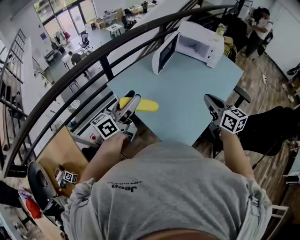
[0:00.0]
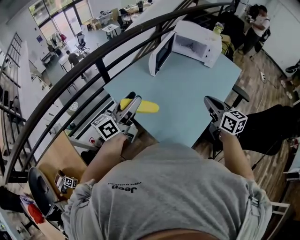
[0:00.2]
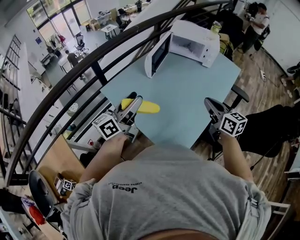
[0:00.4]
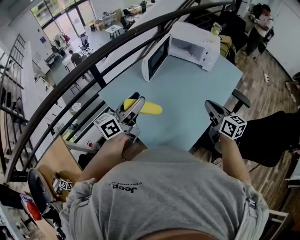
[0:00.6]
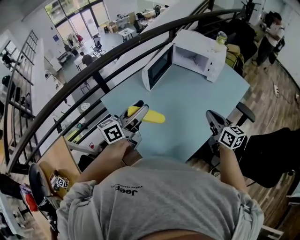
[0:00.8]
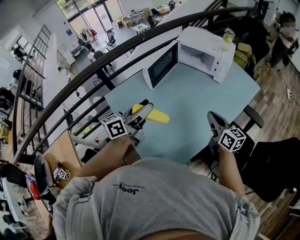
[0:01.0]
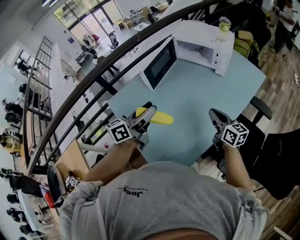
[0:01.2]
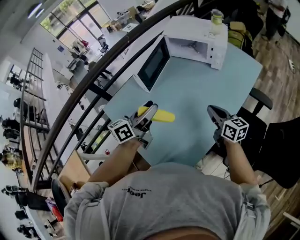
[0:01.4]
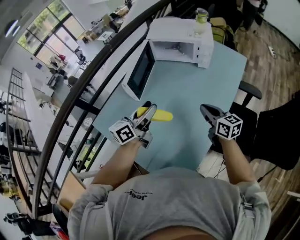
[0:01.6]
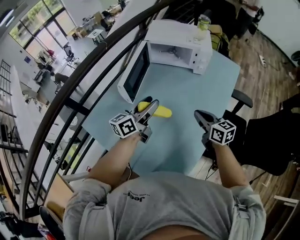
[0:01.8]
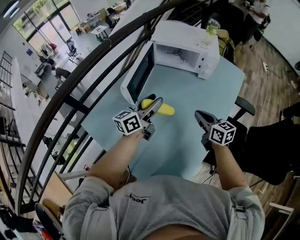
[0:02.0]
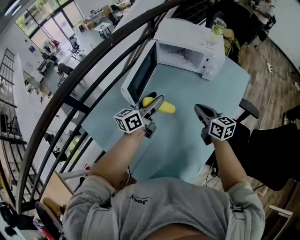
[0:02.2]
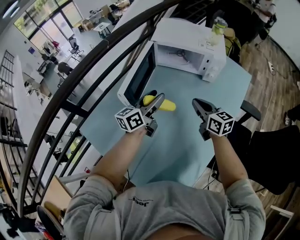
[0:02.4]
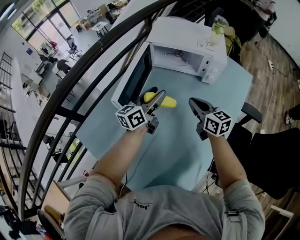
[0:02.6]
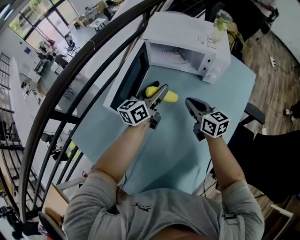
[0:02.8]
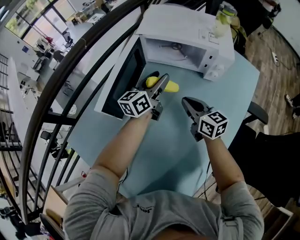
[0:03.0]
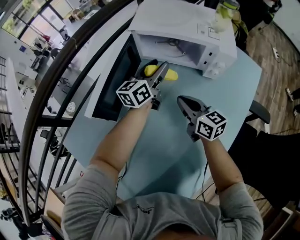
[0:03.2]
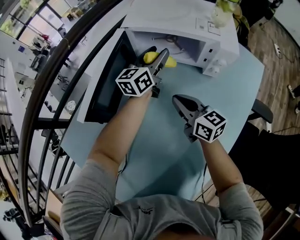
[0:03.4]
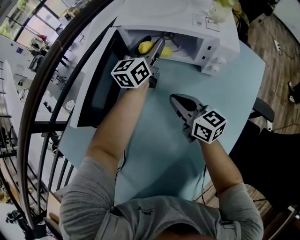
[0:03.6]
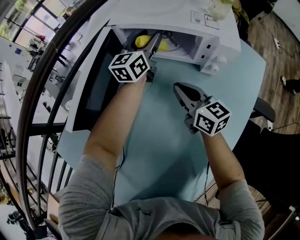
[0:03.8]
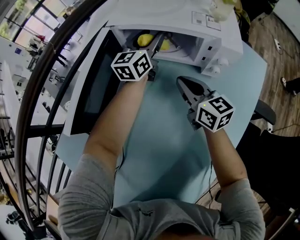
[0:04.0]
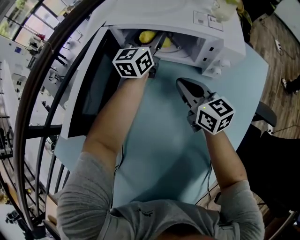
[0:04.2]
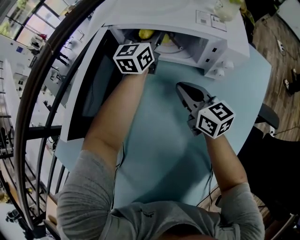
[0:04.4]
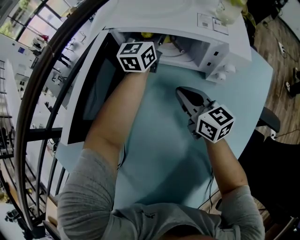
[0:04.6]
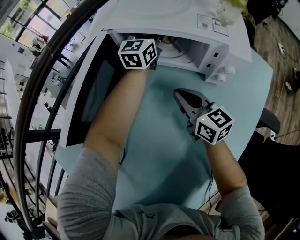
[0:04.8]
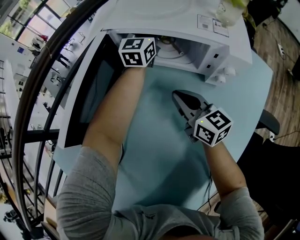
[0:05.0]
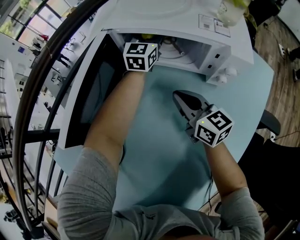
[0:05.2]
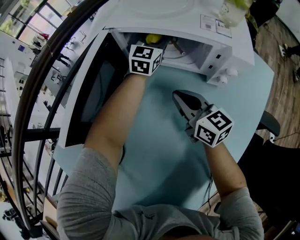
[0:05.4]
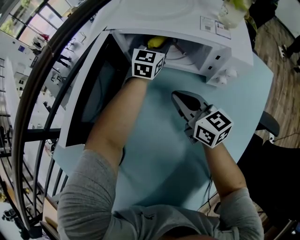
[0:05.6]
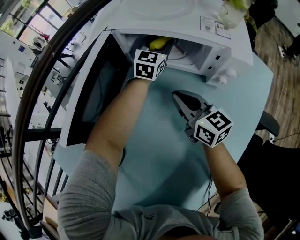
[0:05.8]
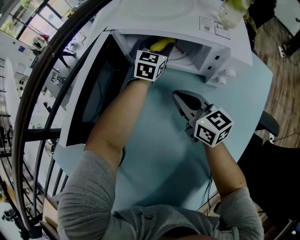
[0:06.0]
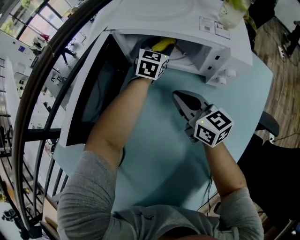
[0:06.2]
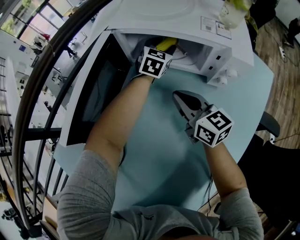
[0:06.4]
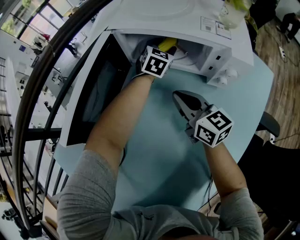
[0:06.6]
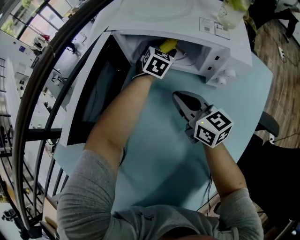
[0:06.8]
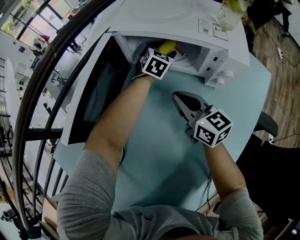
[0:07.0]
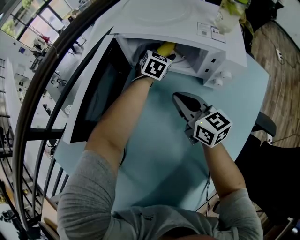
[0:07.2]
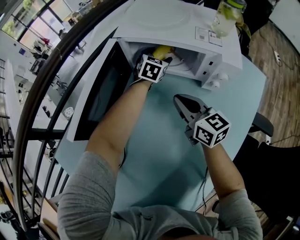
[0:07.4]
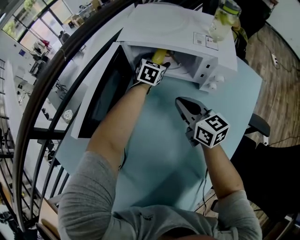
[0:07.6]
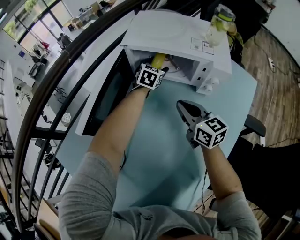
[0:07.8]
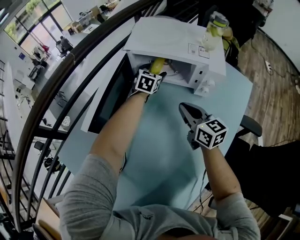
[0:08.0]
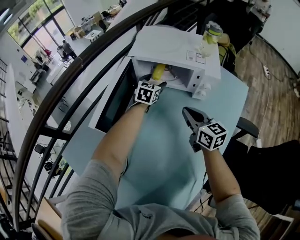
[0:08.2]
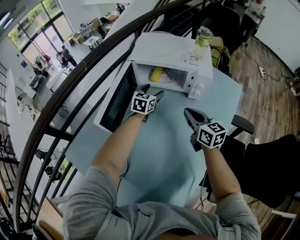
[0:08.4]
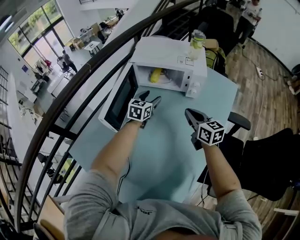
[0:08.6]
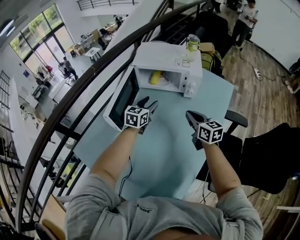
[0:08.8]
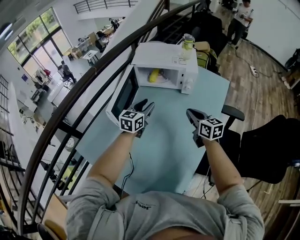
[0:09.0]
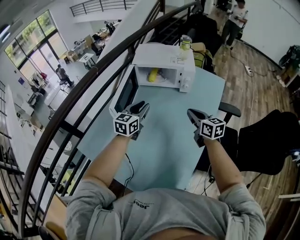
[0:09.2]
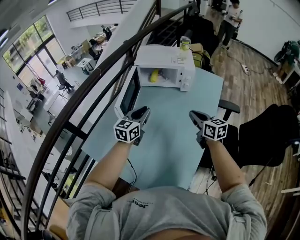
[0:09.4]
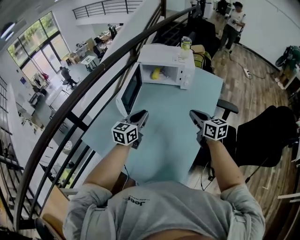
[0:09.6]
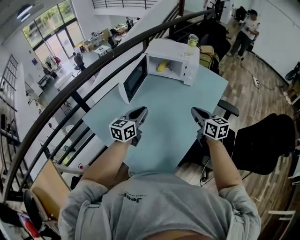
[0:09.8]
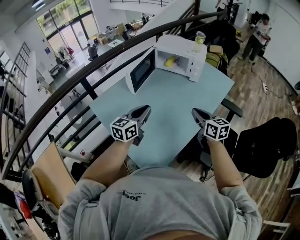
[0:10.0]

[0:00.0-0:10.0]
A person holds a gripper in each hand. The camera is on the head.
0:00.0 to 0:01.4: The left gripper travels to the right and forward by roughly 30 cm. The right gripper travels forward, to the right and downward by roughly 25 cm.
0:01.4 to 0:02.8: The right gripper travels forward by some 20 cm. Meanwhile the left gripper is displaced forward and downward by approximately 30 cm.
0:02.8 to 0:04.2: The left gripper moves forward, roughly 25 cm, and changes its angle by roughly 20 degrees. Meanwhile the right gripper shifts some 10 cm forward.
0:04.2 to 0:05.8: The left gripper goes roughly 5 cm downward, and rotates approximately 20 degrees.
0:05.8 to 0:07.2: The left gripper shifts approximately 5 cm downward, and rotates some 20 degrees.
0:07.2 to 0:08.6: The right gripper shifts some 15 cm backward, upward and to the right. The left gripper travels backward and upward by approximately 25 cm.
0:08.6 to 0:10.0: The right gripper goes approximately 25 cm backward. The left gripper is displaced backward by roughly 40 cm, changes its angle by approximately 20 degrees, and closes.

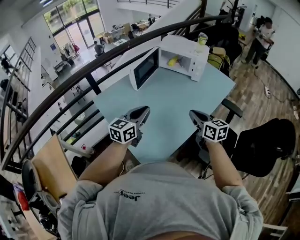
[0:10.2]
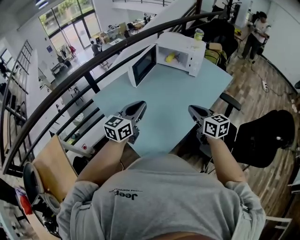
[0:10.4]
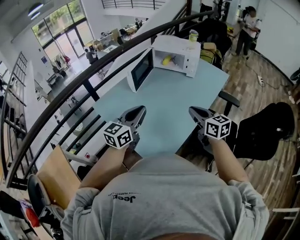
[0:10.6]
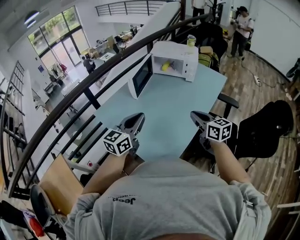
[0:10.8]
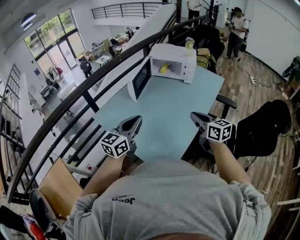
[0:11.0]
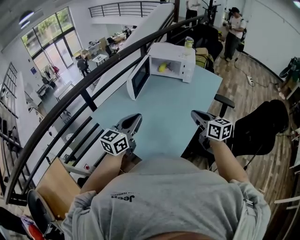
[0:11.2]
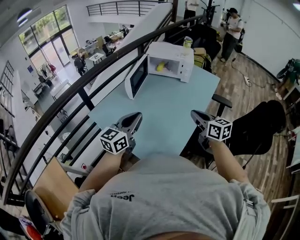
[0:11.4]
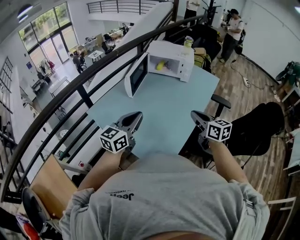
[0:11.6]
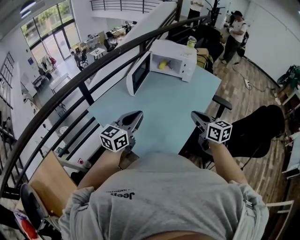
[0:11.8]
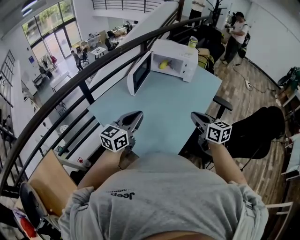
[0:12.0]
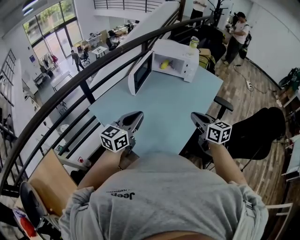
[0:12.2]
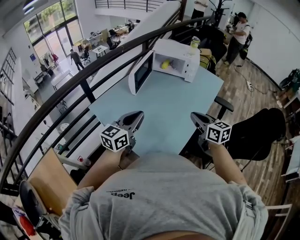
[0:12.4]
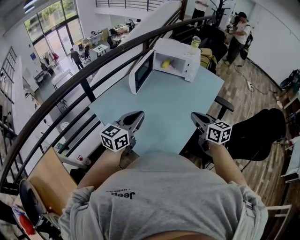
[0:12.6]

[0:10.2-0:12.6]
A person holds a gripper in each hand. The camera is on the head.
0:10.2 to 0:11.4: The right gripper heads upward, covering approximately 5 cm, while the left gripper goes approximately 10 cm to the left.
0:11.4 to 0:12.6: The grippers move only a little.

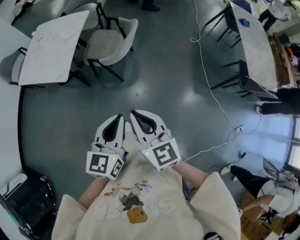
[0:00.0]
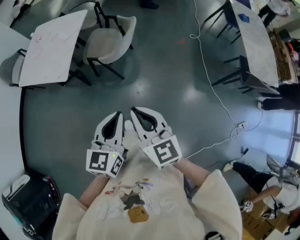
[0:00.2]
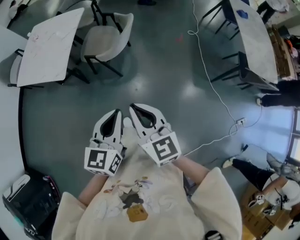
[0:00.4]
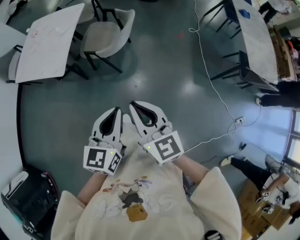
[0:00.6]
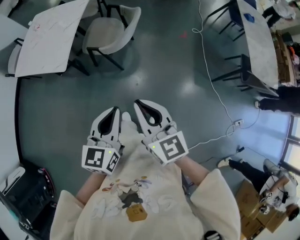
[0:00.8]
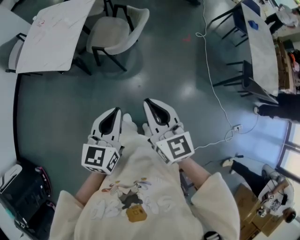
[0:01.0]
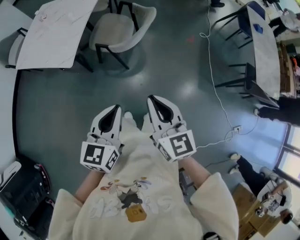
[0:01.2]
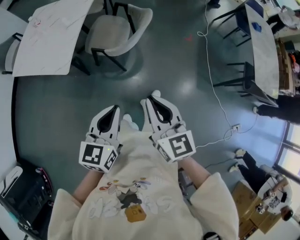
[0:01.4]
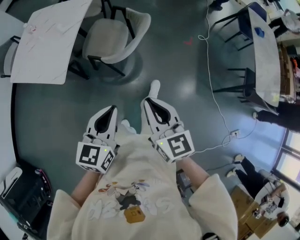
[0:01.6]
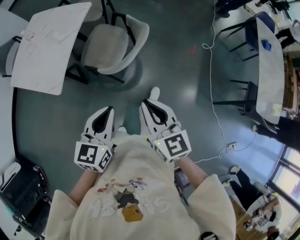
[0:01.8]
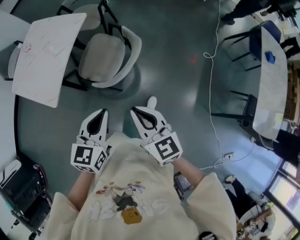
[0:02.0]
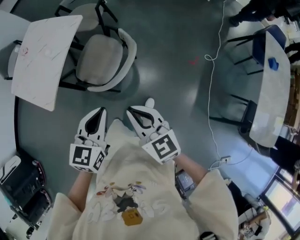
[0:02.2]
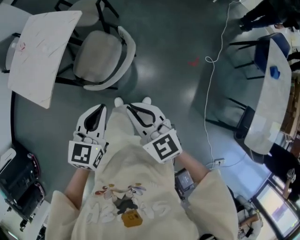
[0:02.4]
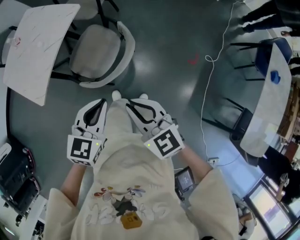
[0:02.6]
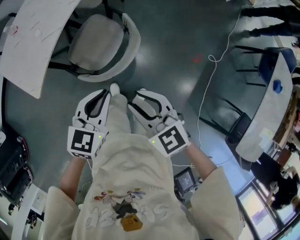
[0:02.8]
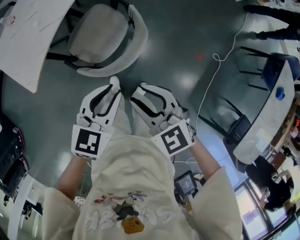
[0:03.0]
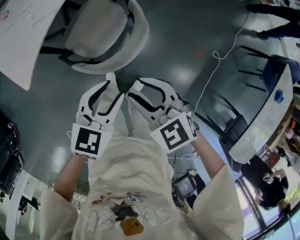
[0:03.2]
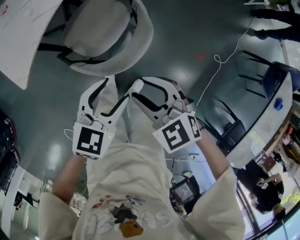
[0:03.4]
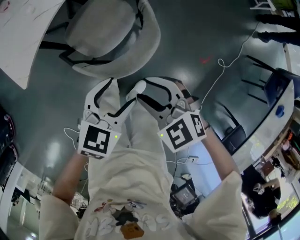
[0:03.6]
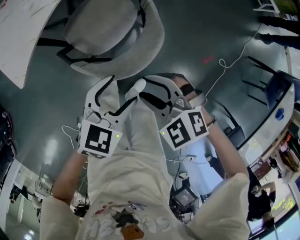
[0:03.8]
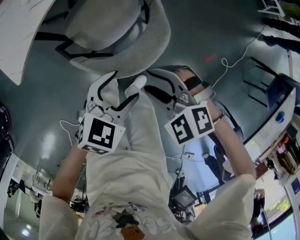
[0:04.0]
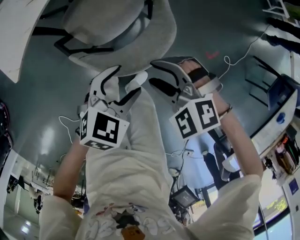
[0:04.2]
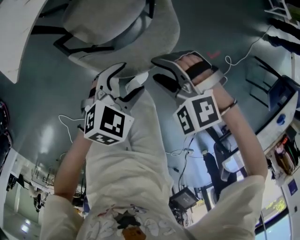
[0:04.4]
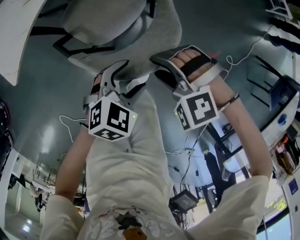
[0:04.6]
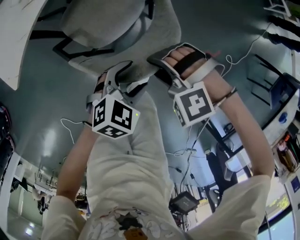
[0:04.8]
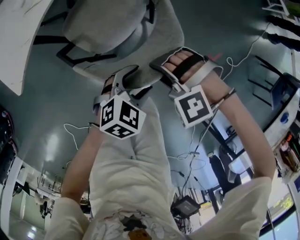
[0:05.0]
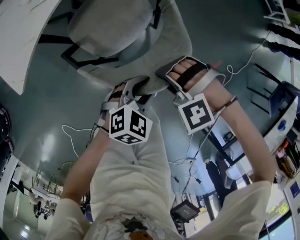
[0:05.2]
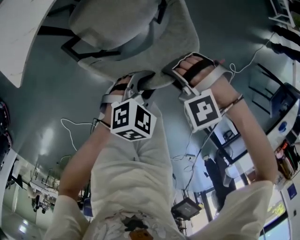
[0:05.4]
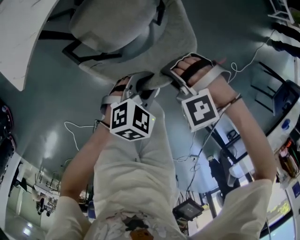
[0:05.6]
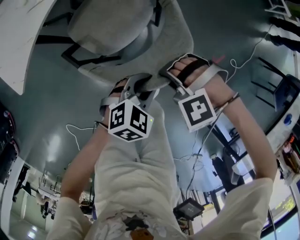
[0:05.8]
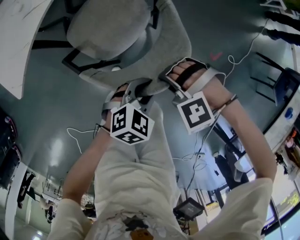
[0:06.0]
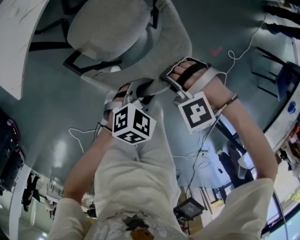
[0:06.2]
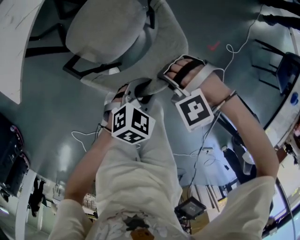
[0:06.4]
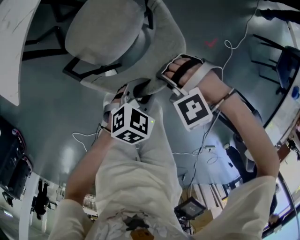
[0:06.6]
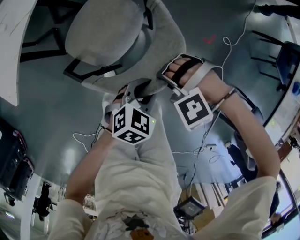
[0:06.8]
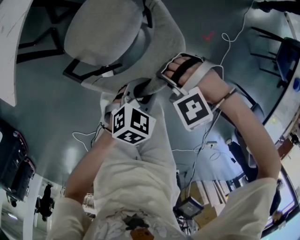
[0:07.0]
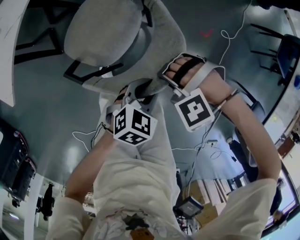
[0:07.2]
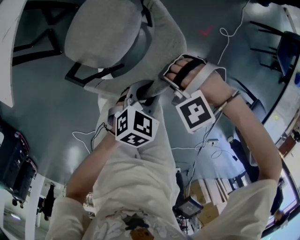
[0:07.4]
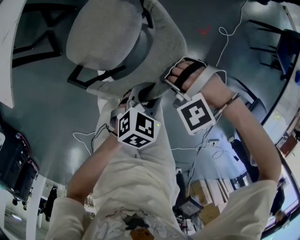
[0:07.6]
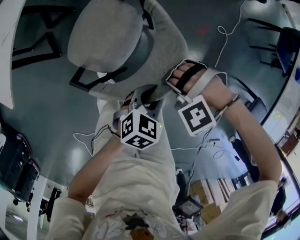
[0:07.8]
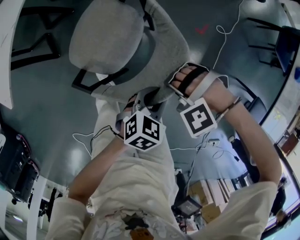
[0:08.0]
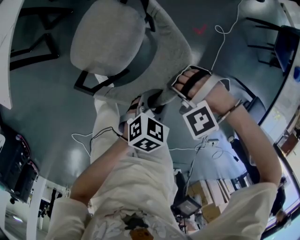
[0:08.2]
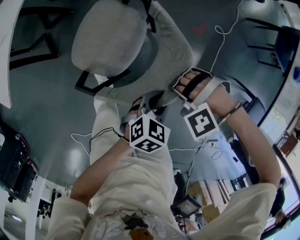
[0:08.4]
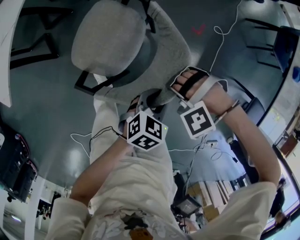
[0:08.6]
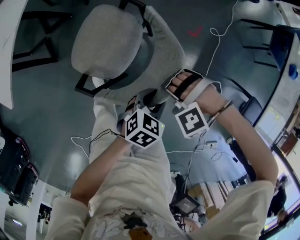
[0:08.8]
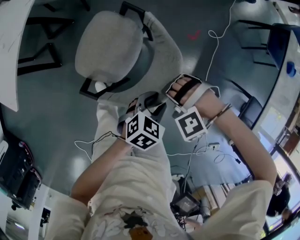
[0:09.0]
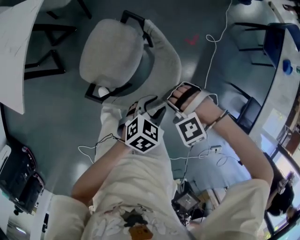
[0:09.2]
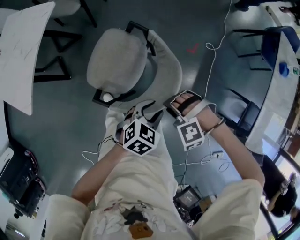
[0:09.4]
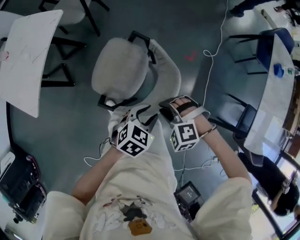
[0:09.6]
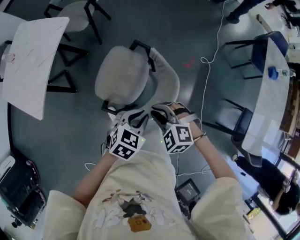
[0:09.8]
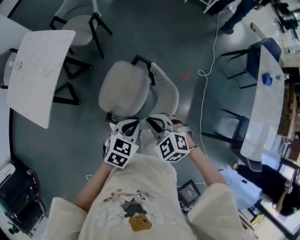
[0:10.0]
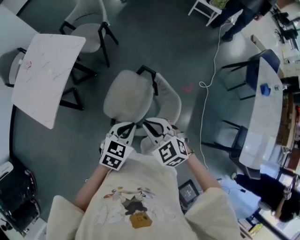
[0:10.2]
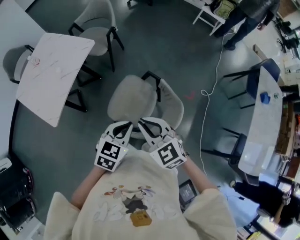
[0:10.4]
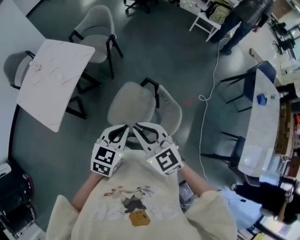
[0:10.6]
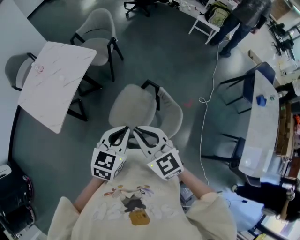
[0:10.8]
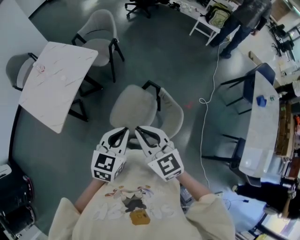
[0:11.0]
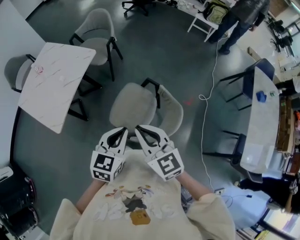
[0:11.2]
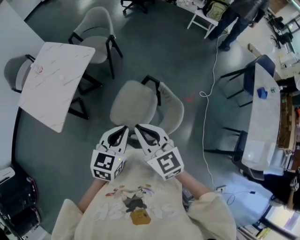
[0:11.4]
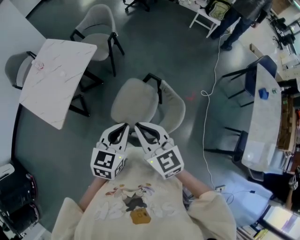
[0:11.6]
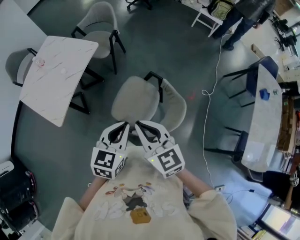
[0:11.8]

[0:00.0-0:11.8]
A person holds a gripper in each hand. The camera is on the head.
0:00.0 to 0:01.4: The left gripper is displaced forward, to the left and downward by about 15 cm; the right gripper goes some 10 cm forward.
0:01.4 to 0:03.0: The two grippers travel together, about 50 cm. The right gripper turns by roughly 50 degrees, and opens its fingers.
0:03.0 to 0:04.4: The right gripper moves downward and forward, approximately 20 cm, and twists some 50 degrees counterclockwise, seen from behind. The left gripper travels downward by roughly 20 cm, and opens its fingers.
0:04.4 to 0:06.0: The right gripper heads downward, covering approximately 5 cm, and closes its fingers, while the left gripper closes its fingers.
0:06.0 to 0:07.4: The right gripper ends up some 20 cm from where it was. Meanwhile the left gripper changes place by approximately 20 cm.
0:07.4 to 0:08.8: The left gripper moves about 10 cm. Meanwhile the right gripper shifts by approximately 10 cm.
0:08.8 to 0:10.4: The grippers both shift upward by approximately 35 cm. The right gripper rotates around the line of its fingers by about 60 degrees, clockwise from behind; the left gripper rotates about 20 degrees, and closes up.
0:10.4 to 0:11.8: The two grippers go roughly 5 cm upward. The right gripper rotates some 20 degrees.
